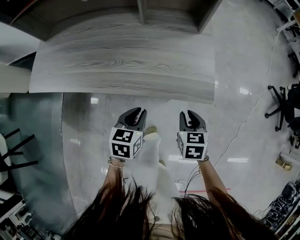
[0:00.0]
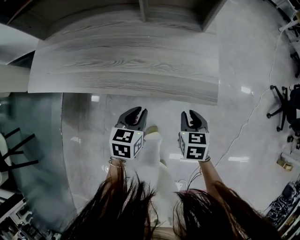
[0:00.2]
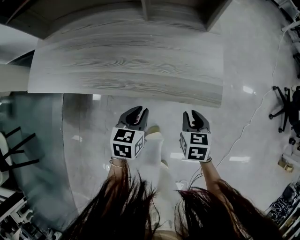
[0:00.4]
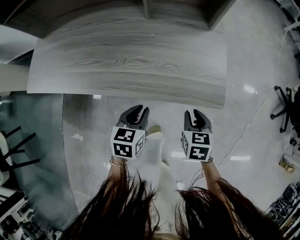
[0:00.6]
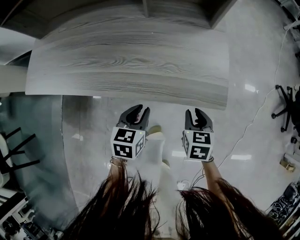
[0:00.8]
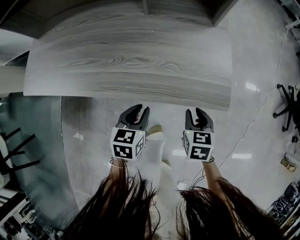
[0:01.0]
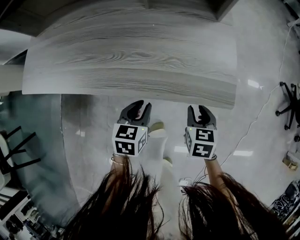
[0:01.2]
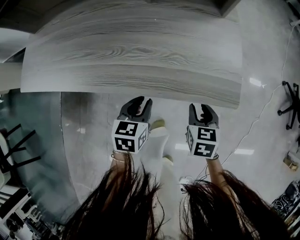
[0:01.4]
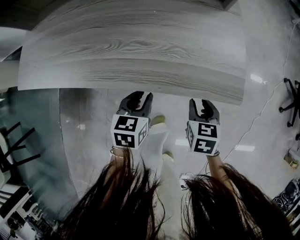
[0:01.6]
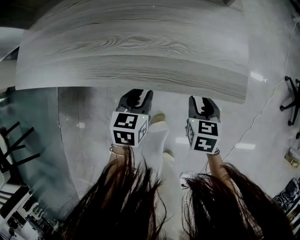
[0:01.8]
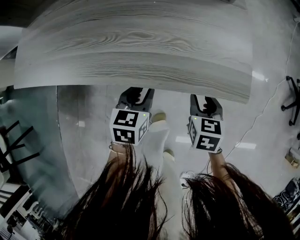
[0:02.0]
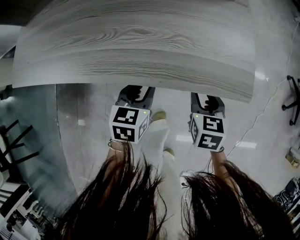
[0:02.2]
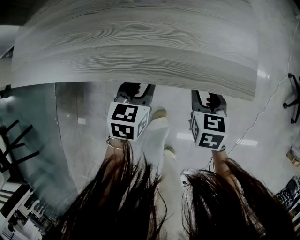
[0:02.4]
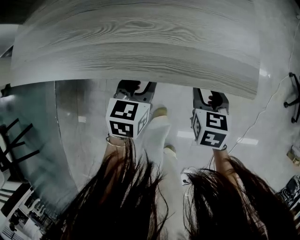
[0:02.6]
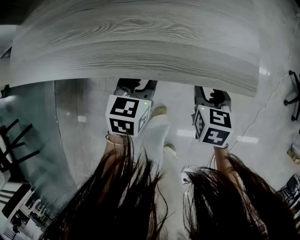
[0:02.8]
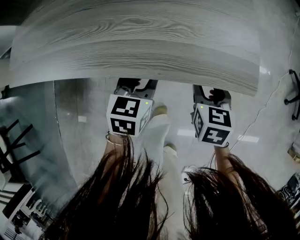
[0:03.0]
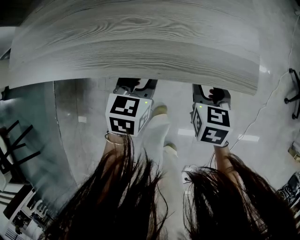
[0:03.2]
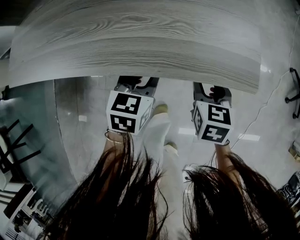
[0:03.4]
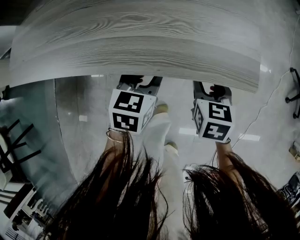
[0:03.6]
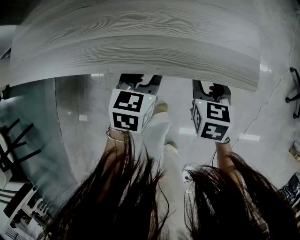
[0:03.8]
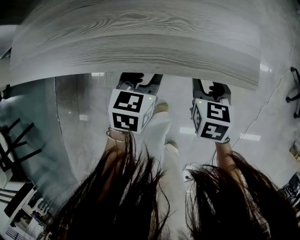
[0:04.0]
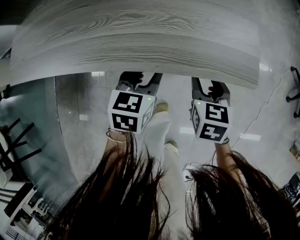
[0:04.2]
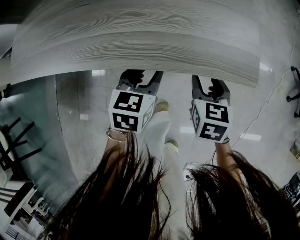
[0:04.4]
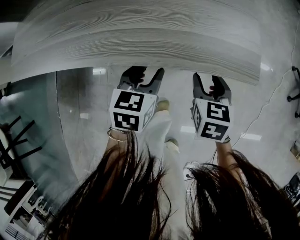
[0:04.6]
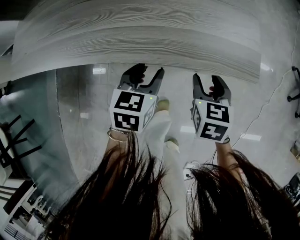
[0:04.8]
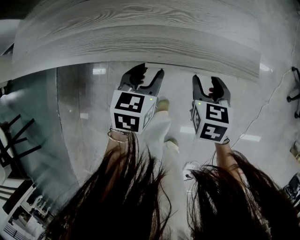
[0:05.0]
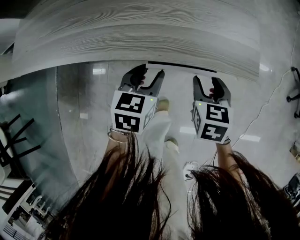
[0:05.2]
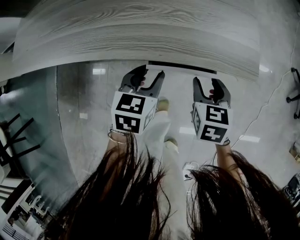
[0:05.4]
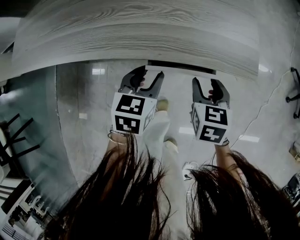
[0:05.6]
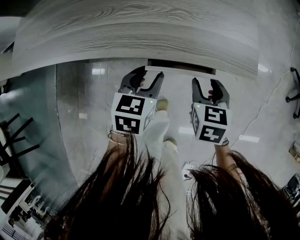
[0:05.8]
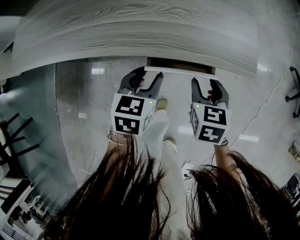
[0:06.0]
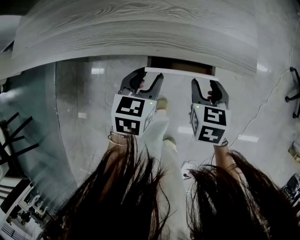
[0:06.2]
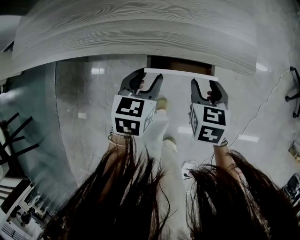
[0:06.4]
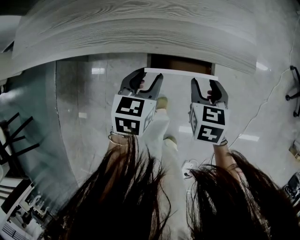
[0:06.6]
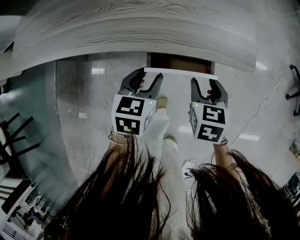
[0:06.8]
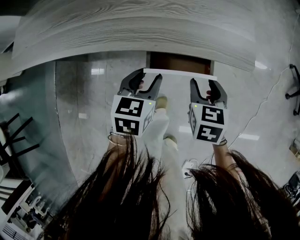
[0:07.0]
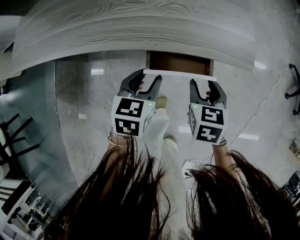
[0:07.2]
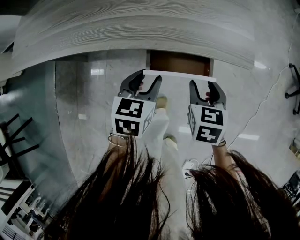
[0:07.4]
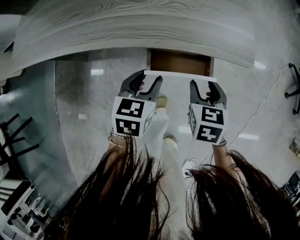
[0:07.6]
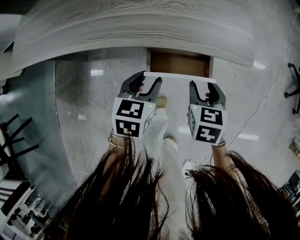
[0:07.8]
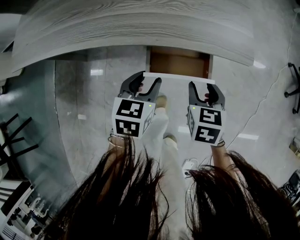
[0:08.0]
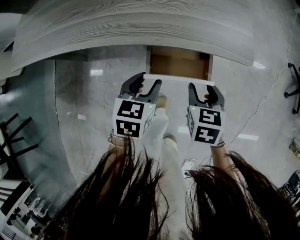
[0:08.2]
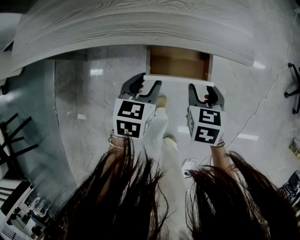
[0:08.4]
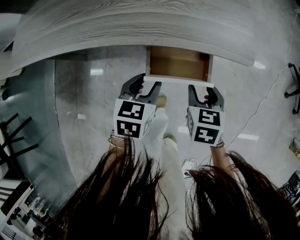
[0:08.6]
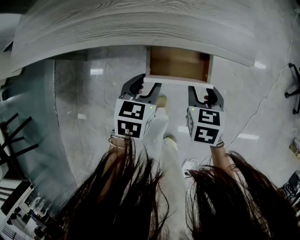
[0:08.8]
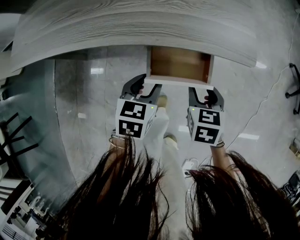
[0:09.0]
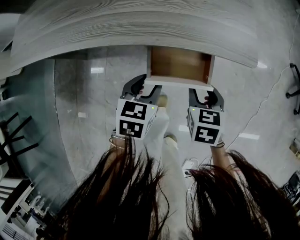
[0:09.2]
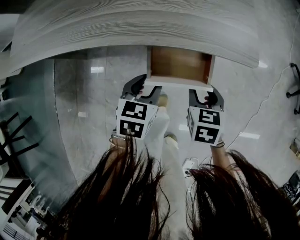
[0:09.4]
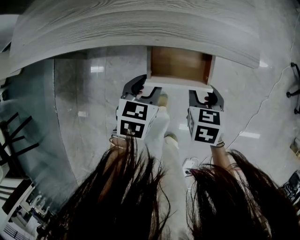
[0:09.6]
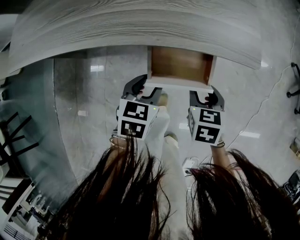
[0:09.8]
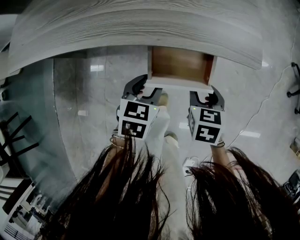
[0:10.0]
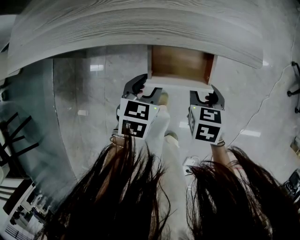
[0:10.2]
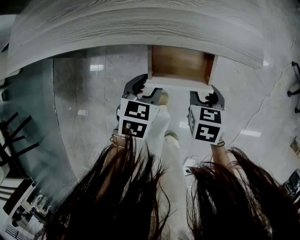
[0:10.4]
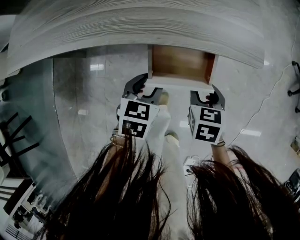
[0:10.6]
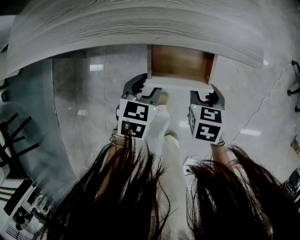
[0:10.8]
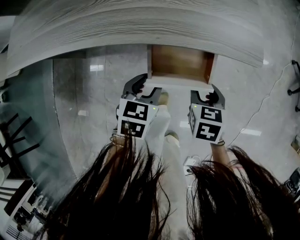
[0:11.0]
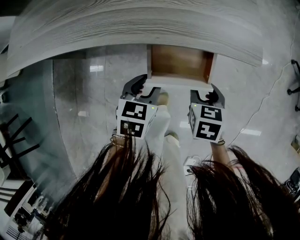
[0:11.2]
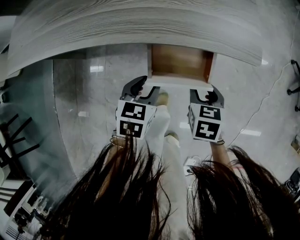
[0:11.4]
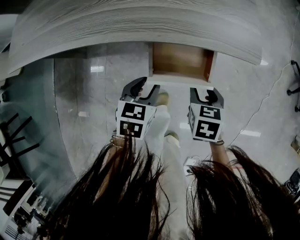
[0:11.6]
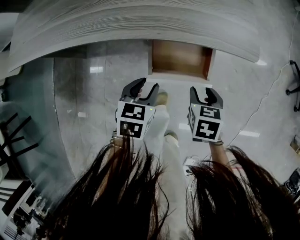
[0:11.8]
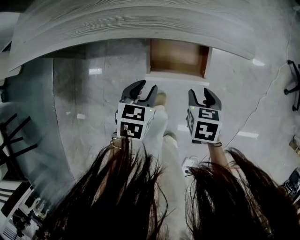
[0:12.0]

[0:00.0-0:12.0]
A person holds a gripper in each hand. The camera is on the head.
0:00.0 to 0:01.6: The grippers both shift downward by some 10 cm.
0:01.6 to 0:03.0: The grippers stay close to where they were, moving slightly.
0:03.0 to 0:04.4: Neither gripper changes place.
0:04.4 to 0:06.0: The grippers stay close to where they were, moving slightly.
0:06.0 to 0:09.0: The grippers move only a little.
0:09.0 to 0:12.0: There are only small adjustments of the grippers.

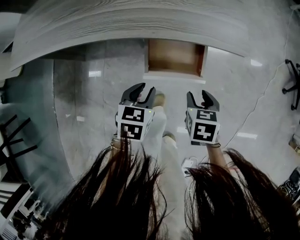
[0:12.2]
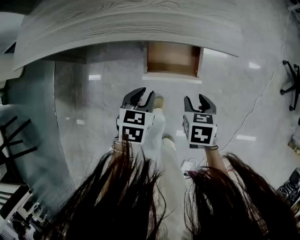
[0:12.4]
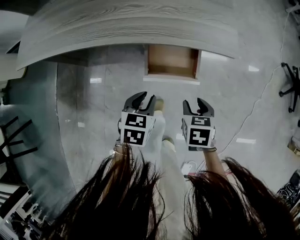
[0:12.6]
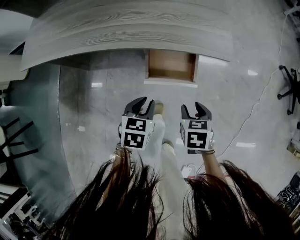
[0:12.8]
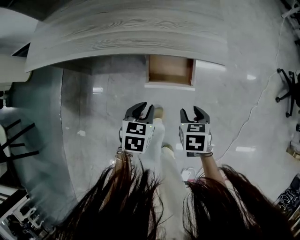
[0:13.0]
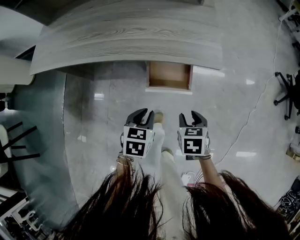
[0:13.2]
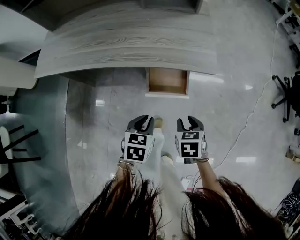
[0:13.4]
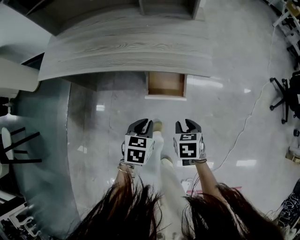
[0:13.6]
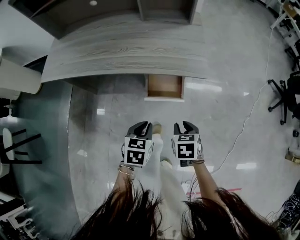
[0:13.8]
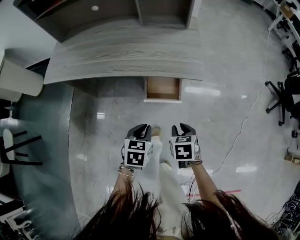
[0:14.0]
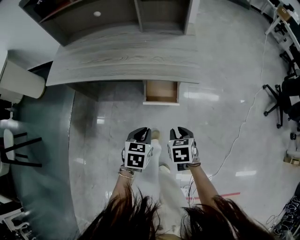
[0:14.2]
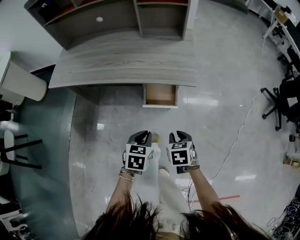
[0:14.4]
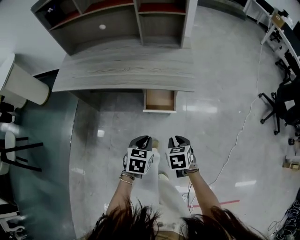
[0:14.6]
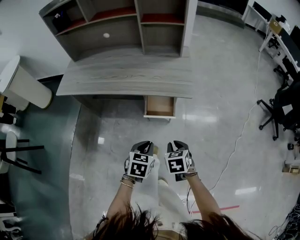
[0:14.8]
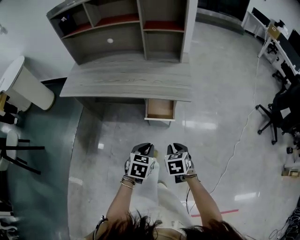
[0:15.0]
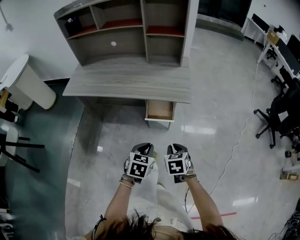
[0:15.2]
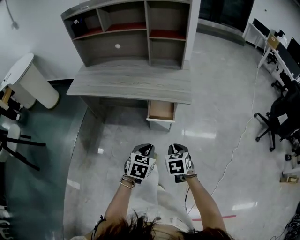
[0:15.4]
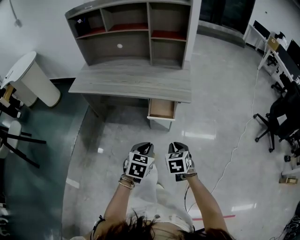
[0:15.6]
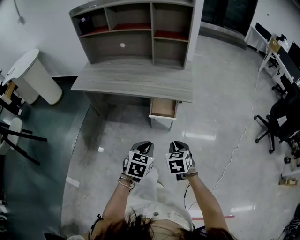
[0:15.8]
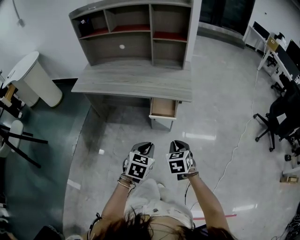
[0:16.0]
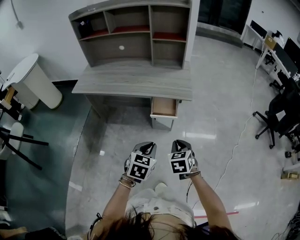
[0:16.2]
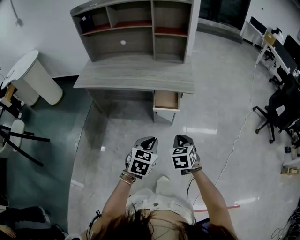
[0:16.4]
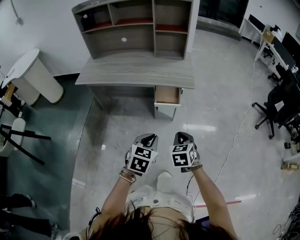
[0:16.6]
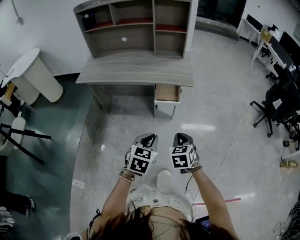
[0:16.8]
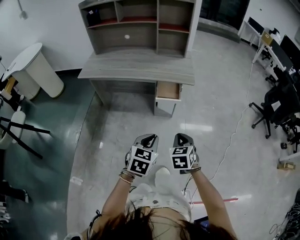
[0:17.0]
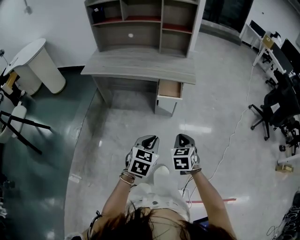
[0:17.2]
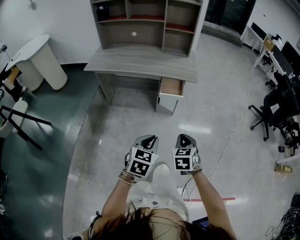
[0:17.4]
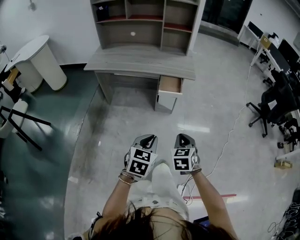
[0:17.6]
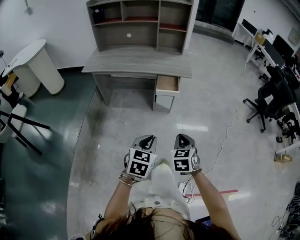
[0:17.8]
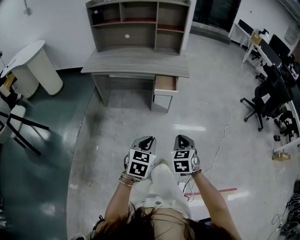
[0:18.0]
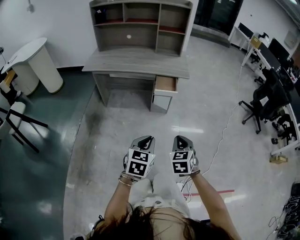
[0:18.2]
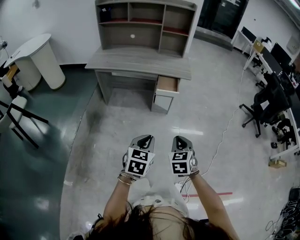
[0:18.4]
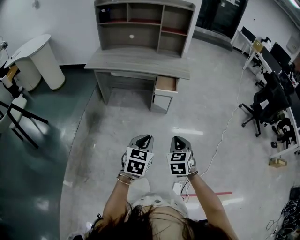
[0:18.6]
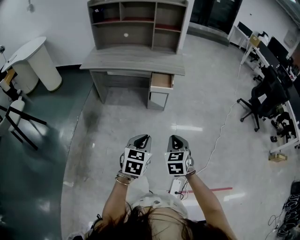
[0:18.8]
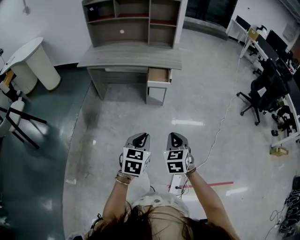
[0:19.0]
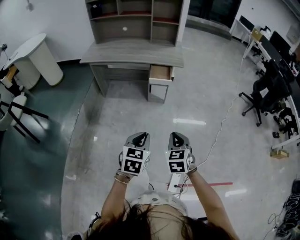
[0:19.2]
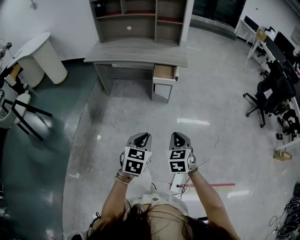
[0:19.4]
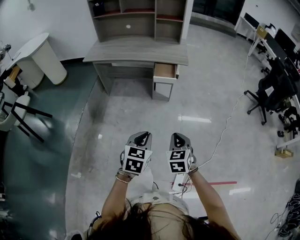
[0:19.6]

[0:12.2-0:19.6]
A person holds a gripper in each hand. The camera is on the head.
0:12.2 to 0:13.6: The grippers both shift upward and backward by roughly 10 cm.
0:13.6 to 0:15.2: The grippers both shift upward and backward by approximately 15 cm.
0:15.2 to 0:16.6: The two grippers go approximately 15 cm backward and upward.
0:16.6 to 0:18.2: The grippers both shift backward by about 20 cm.
0:18.2 to 0:19.6: The left gripper changes place by approximately 5 cm; the right gripper goes about 5 cm backward.

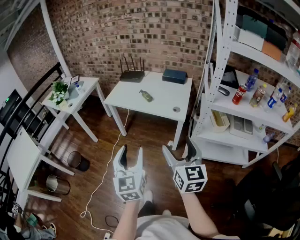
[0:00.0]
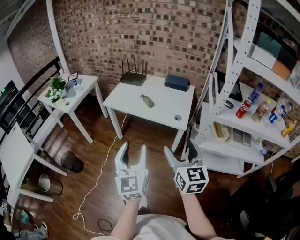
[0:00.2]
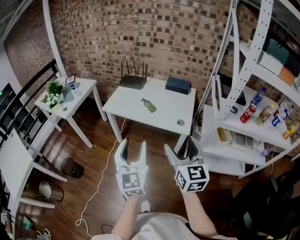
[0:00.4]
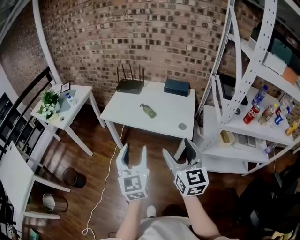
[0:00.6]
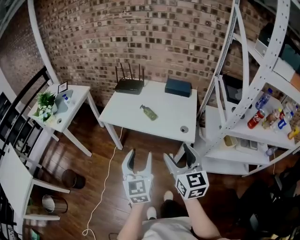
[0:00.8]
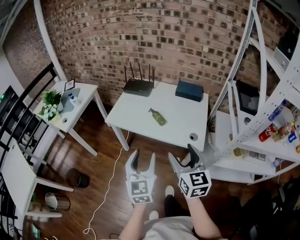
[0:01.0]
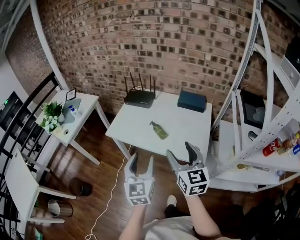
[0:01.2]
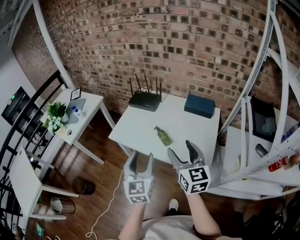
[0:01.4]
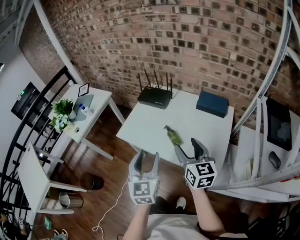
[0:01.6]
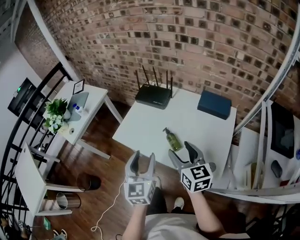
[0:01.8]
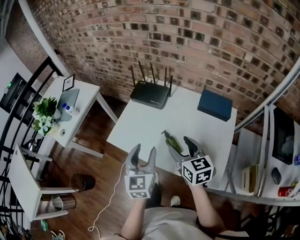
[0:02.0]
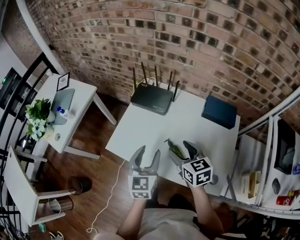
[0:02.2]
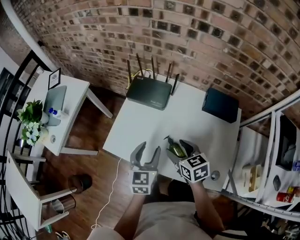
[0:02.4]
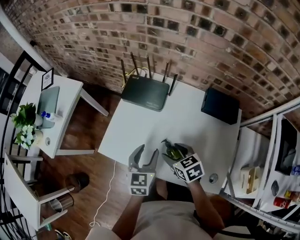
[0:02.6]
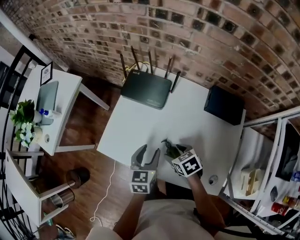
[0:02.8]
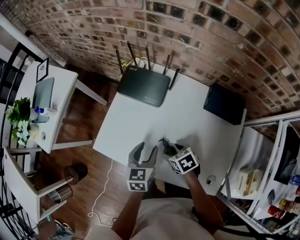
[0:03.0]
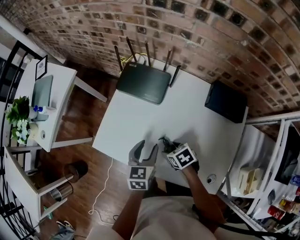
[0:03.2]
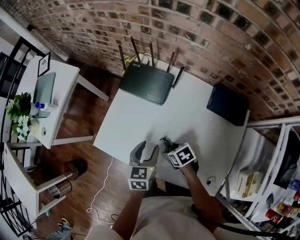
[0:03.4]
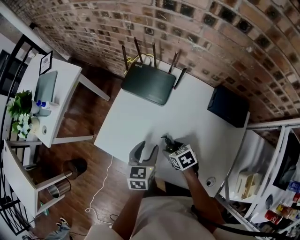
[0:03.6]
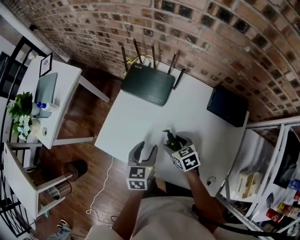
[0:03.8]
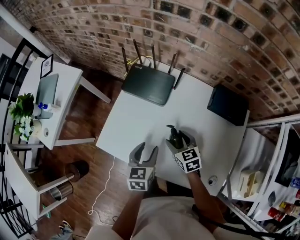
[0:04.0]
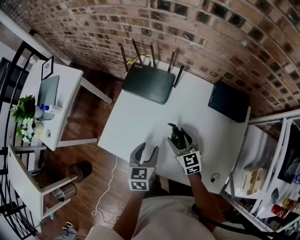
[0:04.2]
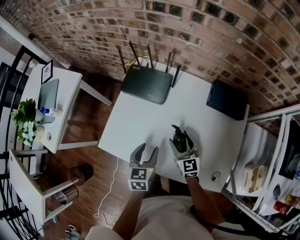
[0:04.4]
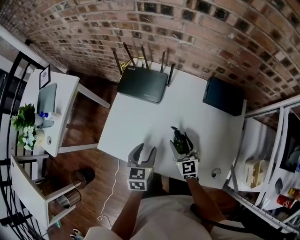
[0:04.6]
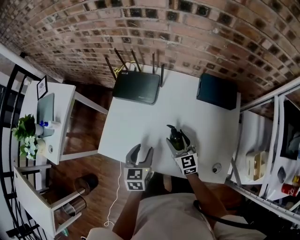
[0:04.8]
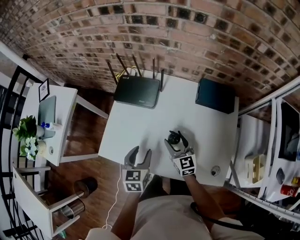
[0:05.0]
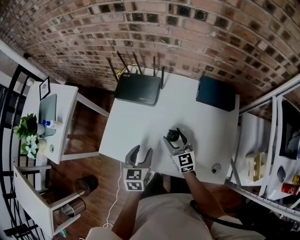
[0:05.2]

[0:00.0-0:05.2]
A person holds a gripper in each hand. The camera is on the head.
0:00.0 to 0:01.8: The two grippers travel together, forward, roughly 50 cm. The right gripper changes its angle by roughly 20 degrees.
0:01.8 to 0:03.4: Both grippers move downward and forward, approximately 30 cm. The left gripper turns by roughly 30 degrees. The right gripper tilts its fingers about 50 degrees downward.
0:03.4 to 0:05.2: The right gripper goes approximately 10 cm upward, and tips its fingers upward by approximately 50 degrees.
